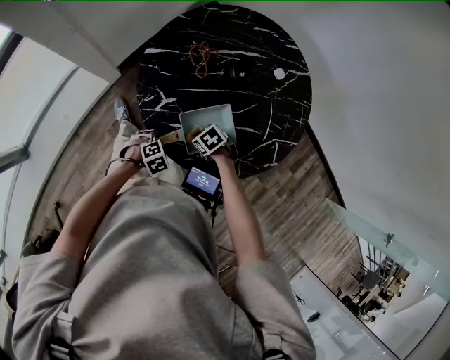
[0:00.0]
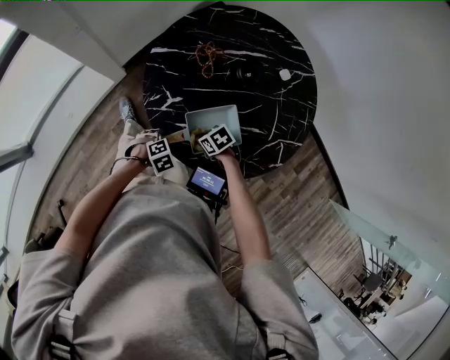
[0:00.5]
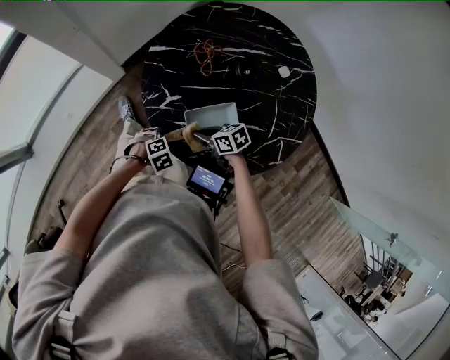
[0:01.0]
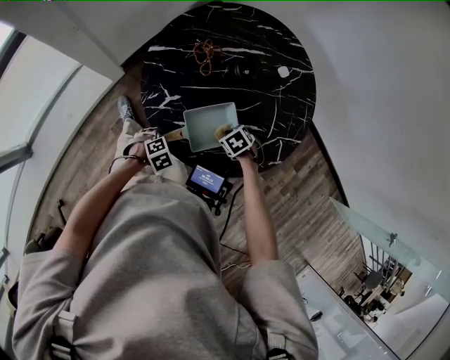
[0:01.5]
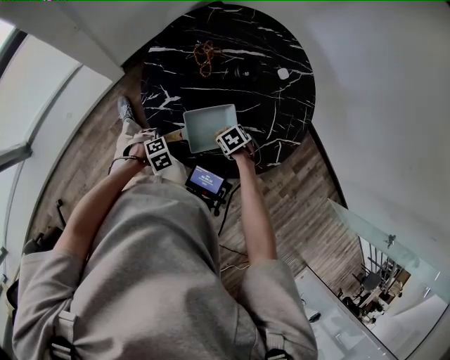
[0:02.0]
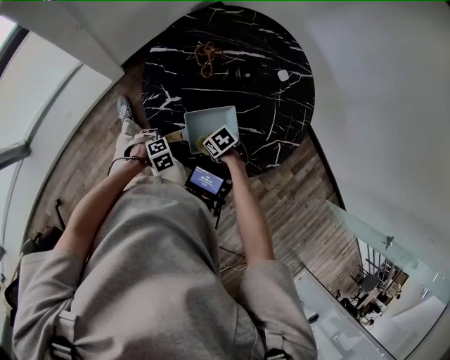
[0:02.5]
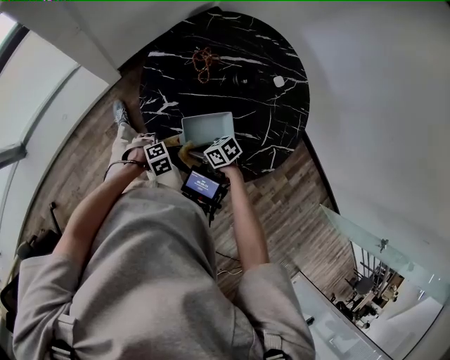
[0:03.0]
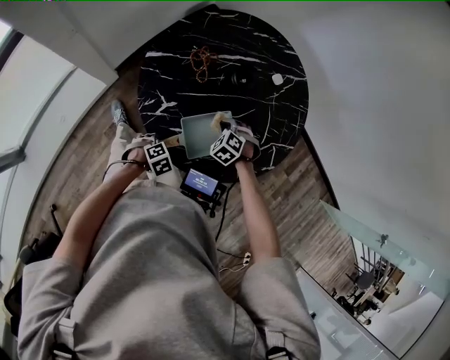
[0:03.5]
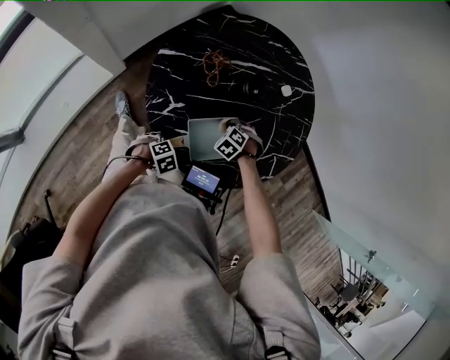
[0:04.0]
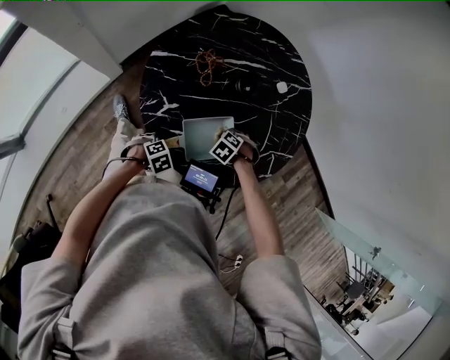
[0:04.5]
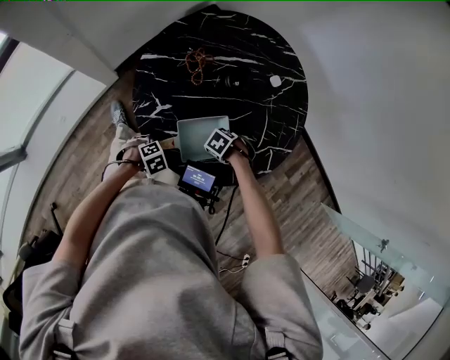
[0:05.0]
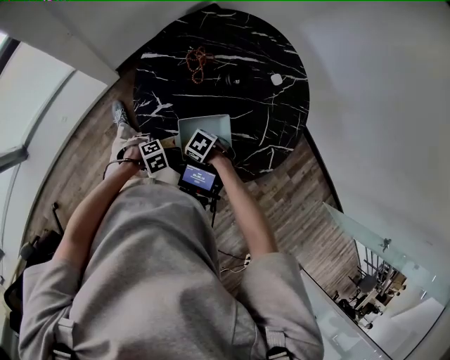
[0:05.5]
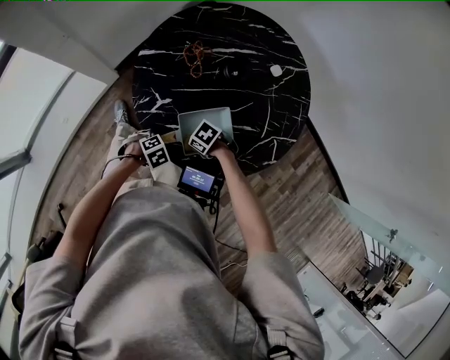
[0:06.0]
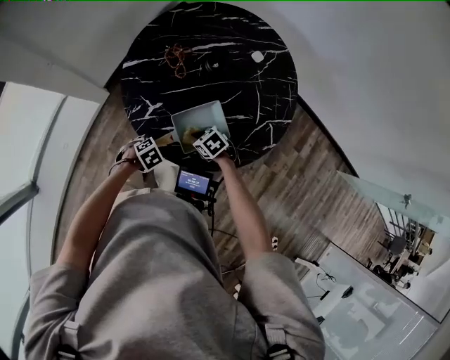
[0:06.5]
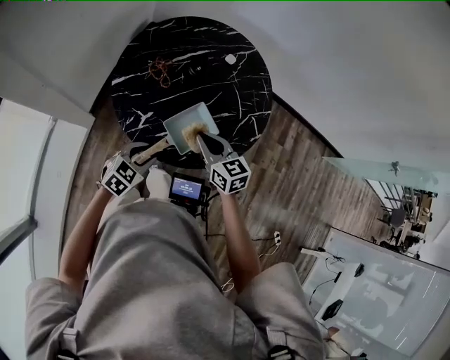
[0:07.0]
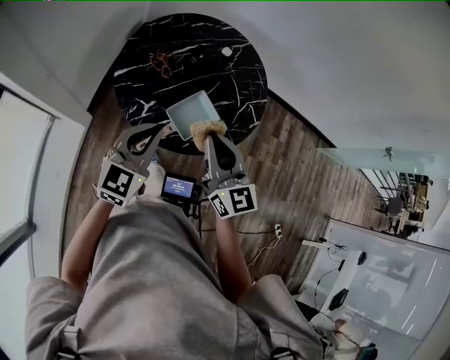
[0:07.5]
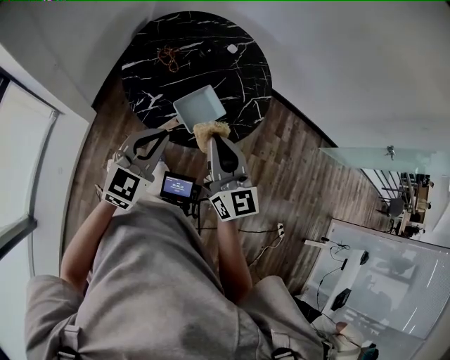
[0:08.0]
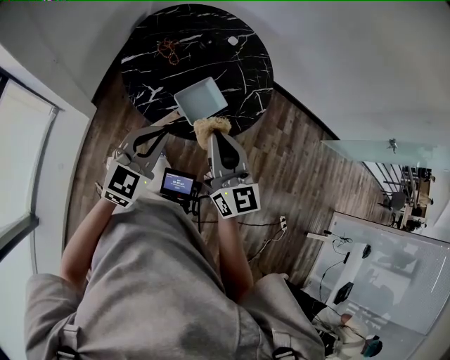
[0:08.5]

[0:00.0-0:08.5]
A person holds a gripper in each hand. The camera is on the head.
0:00.0 to 0:02.0: The right gripper changes place by some 10 cm.
0:02.0 to 0:04.0: The right gripper shifts by approximately 10 cm, and swivels approximately 40 degrees.
0:04.0 to 0:06.5: The left gripper opens up, while the right gripper changes place by some 10 cm, and rotates about 50 degrees.
0:06.5 to 0:08.5: The grippers both shift upward by approximately 40 cm. The right gripper tips its fingers upward by approximately 60 degrees; the left gripper tilts its fingers roughly 60 degrees upward, and closes.

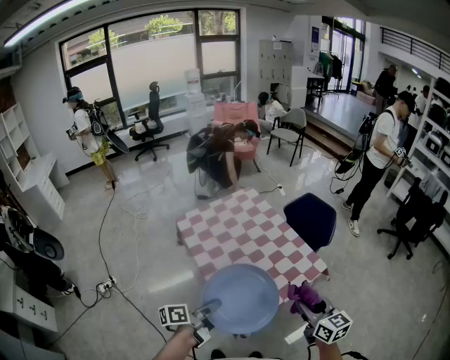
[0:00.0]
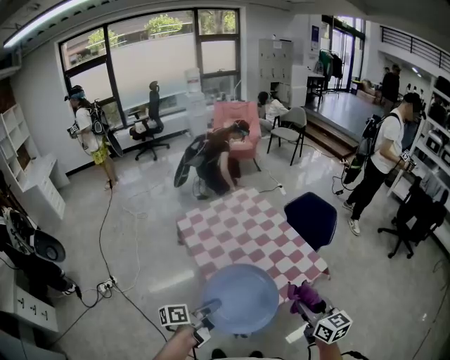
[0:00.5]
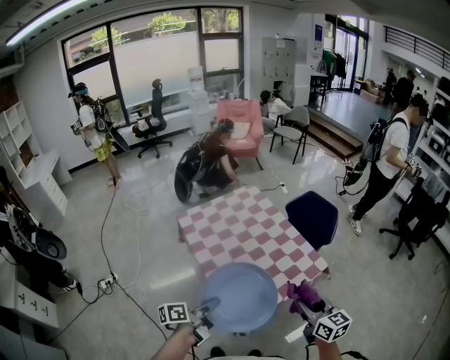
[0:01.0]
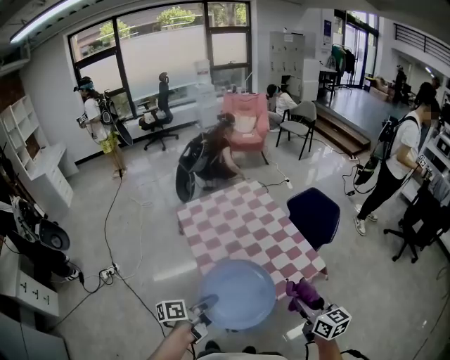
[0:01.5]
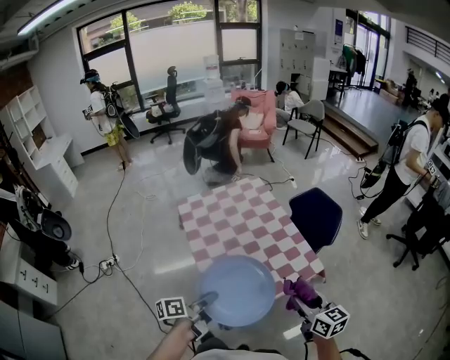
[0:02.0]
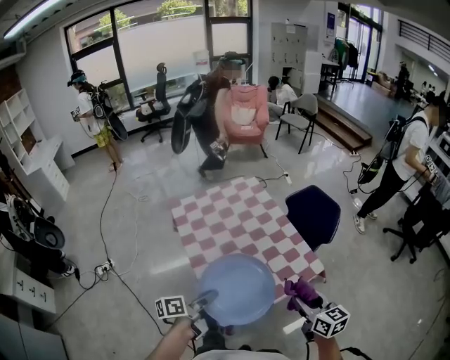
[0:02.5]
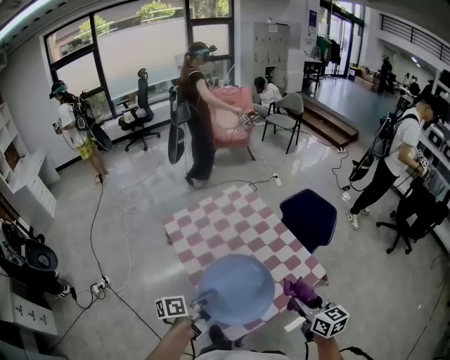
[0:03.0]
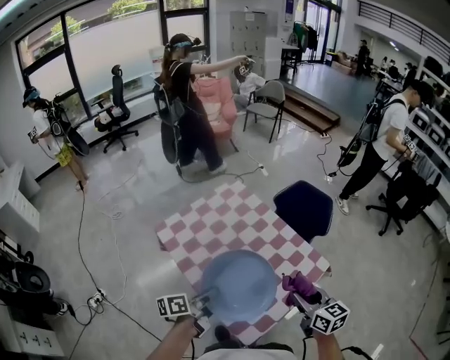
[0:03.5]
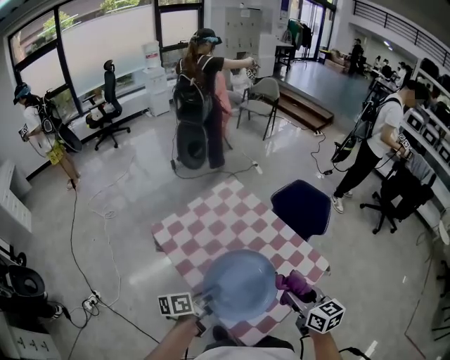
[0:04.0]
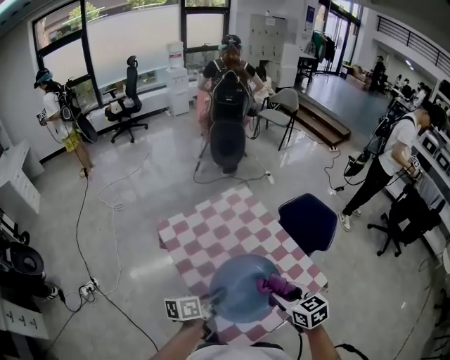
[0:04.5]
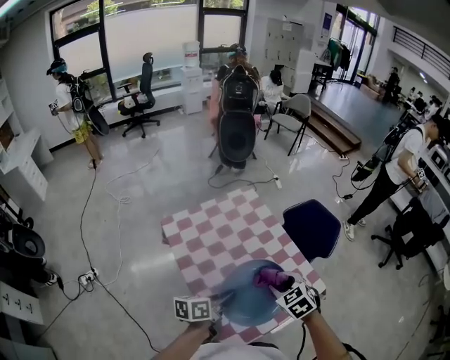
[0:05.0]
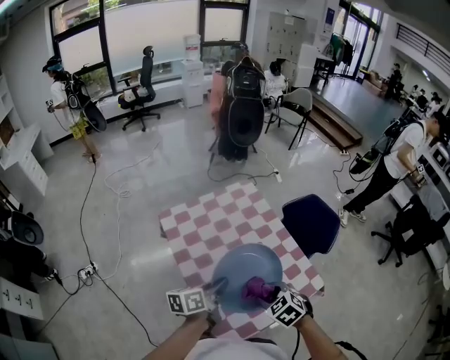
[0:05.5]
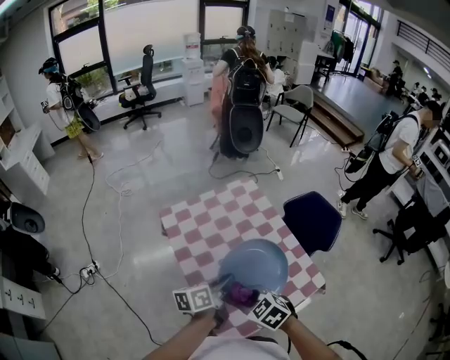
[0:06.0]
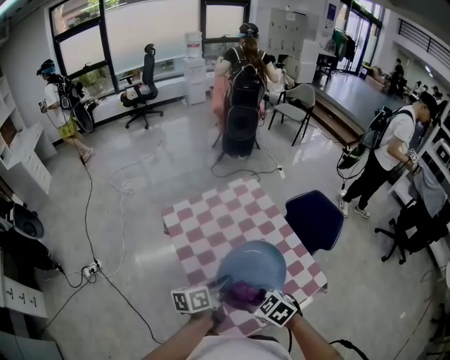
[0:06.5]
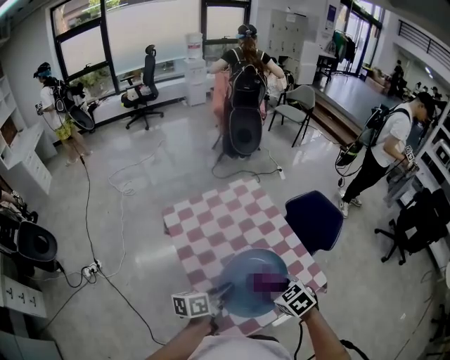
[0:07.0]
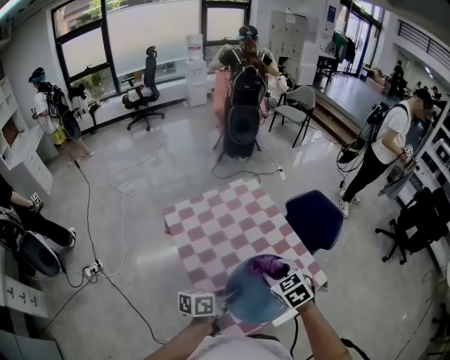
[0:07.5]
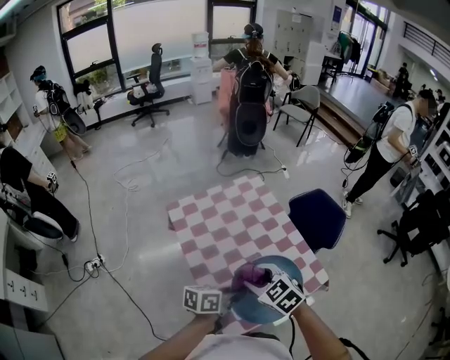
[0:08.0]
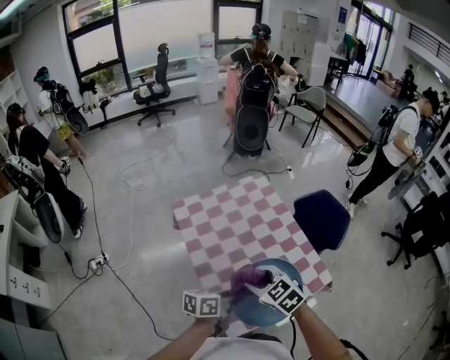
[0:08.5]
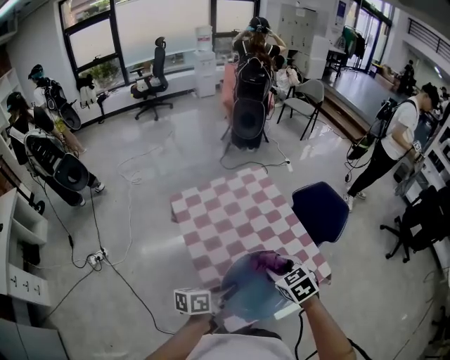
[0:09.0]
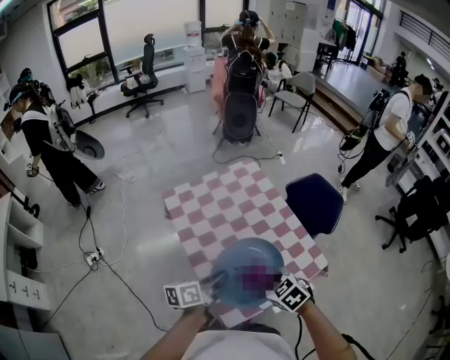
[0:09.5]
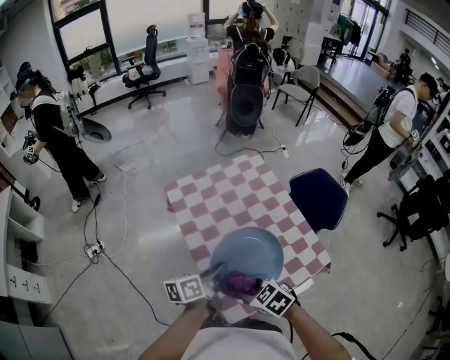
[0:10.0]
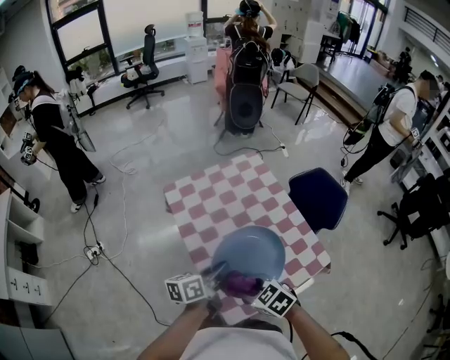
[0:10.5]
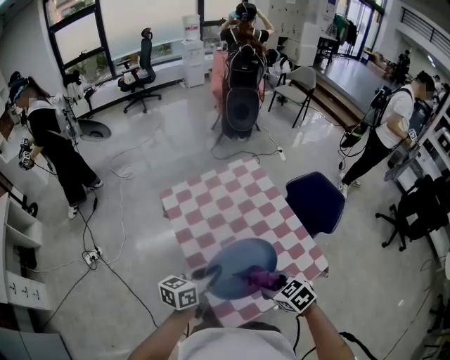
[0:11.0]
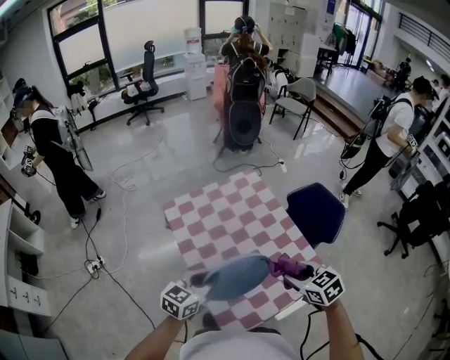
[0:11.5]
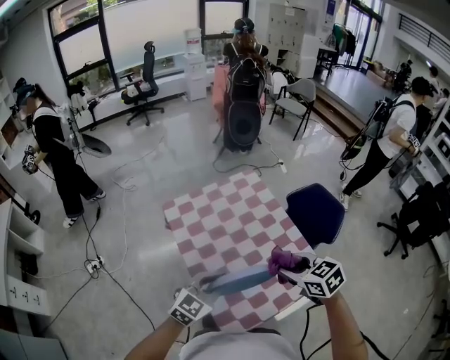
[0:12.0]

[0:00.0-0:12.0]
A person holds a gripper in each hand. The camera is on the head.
0:00.0 to 0:02.0: The grippers both shift to the right by roughly 5 cm.
0:02.0 to 0:04.0: The right gripper goes some 25 cm to the left and forward. Meanwhile the left gripper moves forward and to the left, some 30 cm, and rotates some 20 degrees.
0:04.0 to 0:06.0: The left gripper moves roughly 10 cm, while the right gripper shifts by some 15 cm, and changes its angle by some 60 degrees.
0:06.0 to 0:08.0: The left gripper goes about 10 cm backward. The right gripper shifts approximately 5 cm upward, and moves approximately 10 cm to the right and comes back.
0:08.0 to 0:10.0: The right gripper moves backward and downward, about 10 cm; the left gripper goes some 10 cm to the left, and turns by roughly 20 degrees.
0:10.0 to 0:12.0: The left gripper shifts about 5 cm upward, and rotates around the line of its fingers by some 70 degrees, clockwise from behind; the right gripper shifts about 20 cm to the right, upward and forward, and turns by some 20 degrees.

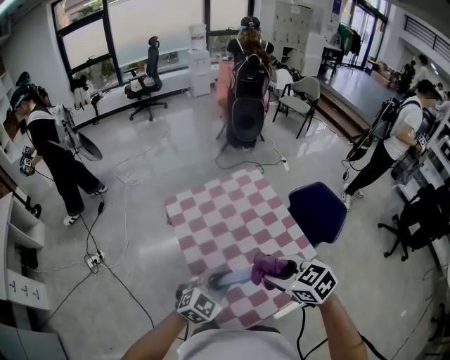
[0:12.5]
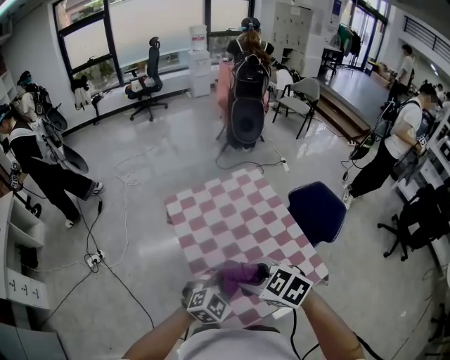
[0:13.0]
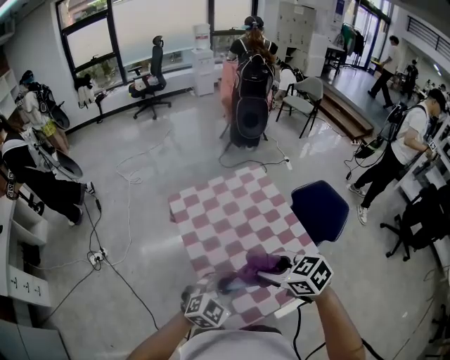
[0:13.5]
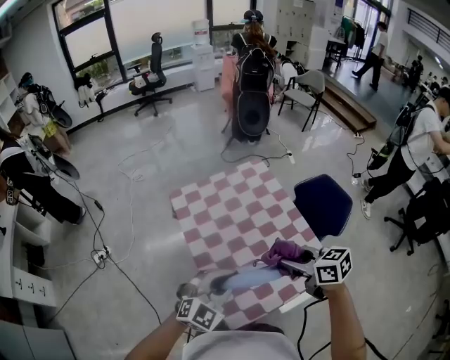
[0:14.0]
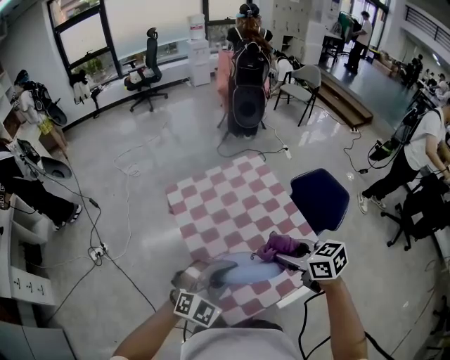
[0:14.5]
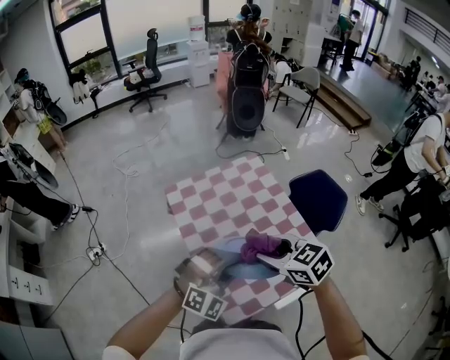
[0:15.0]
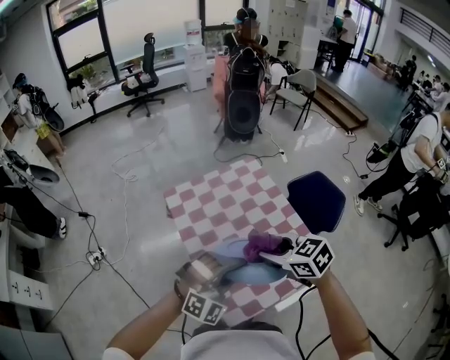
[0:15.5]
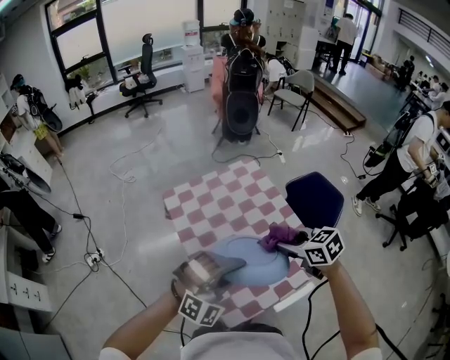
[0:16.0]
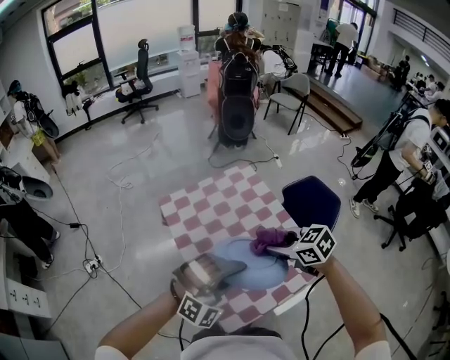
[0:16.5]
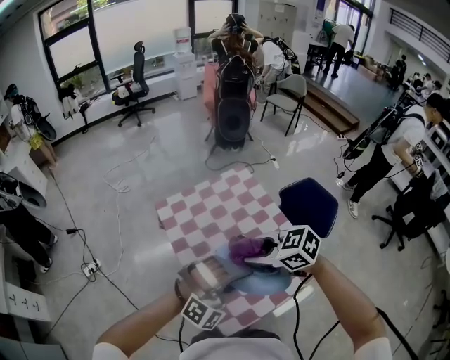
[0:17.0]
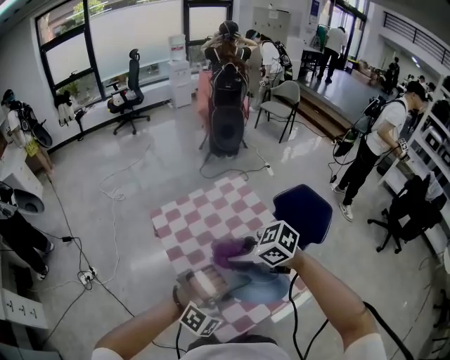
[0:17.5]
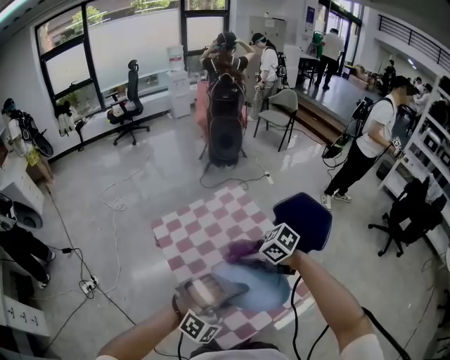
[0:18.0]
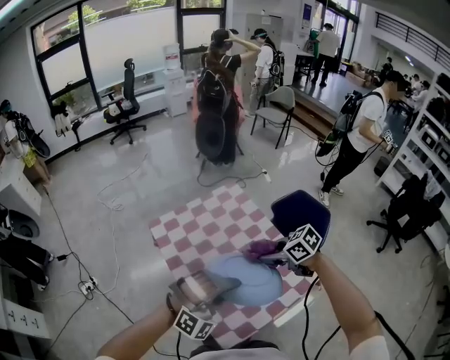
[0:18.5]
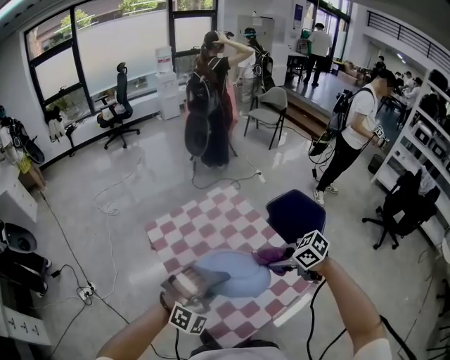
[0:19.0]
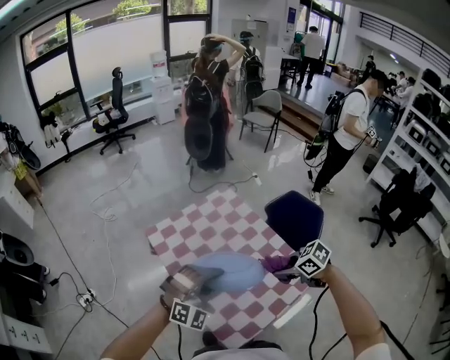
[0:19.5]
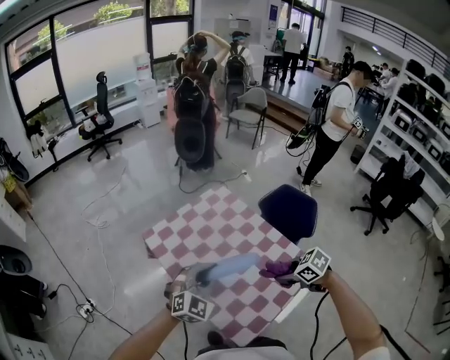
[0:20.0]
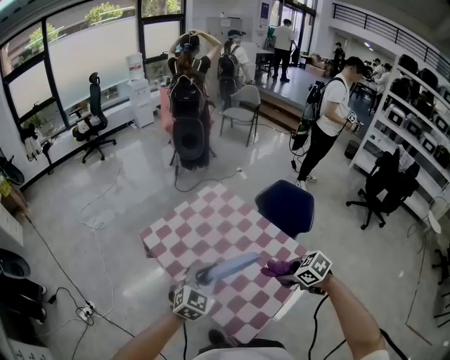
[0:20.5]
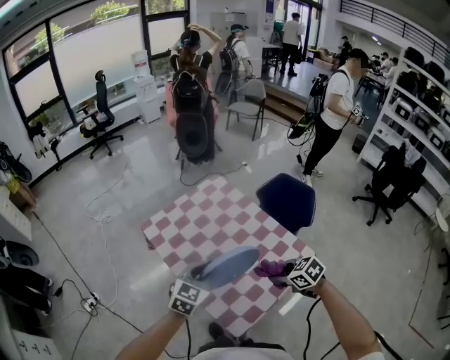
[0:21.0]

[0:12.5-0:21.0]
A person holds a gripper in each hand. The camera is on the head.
0:12.5 to 0:14.5: The right gripper moves about 10 cm to the left and comes back. The left gripper travels upward by some 5 cm, and turns by approximately 20 degrees.
0:14.5 to 0:16.5: The right gripper goes to the left and returns, approximately 5 cm each way. Meanwhile the left gripper changes place by approximately 5 cm, and turns by some 30 degrees.
0:16.5 to 0:19.0: The right gripper moves approximately 10 cm.
0:19.0 to 0:21.0: The right gripper is displaced backward and downward by roughly 15 cm. Meanwhile the left gripper moves downward and to the left, about 10 cm, and rotates around the line of its fingers by some 60 degrees, counterclockwise from behind.
